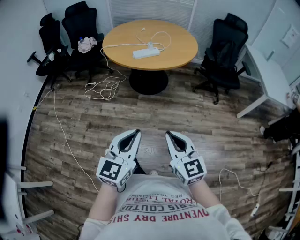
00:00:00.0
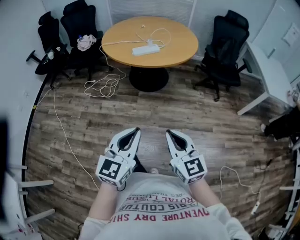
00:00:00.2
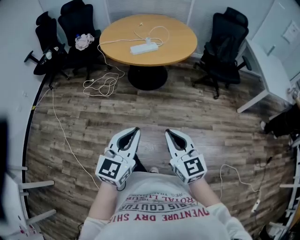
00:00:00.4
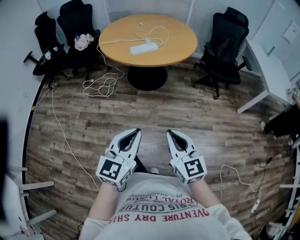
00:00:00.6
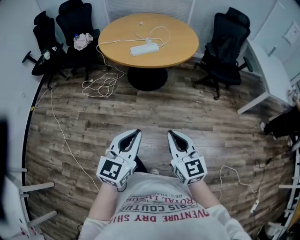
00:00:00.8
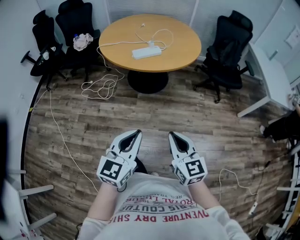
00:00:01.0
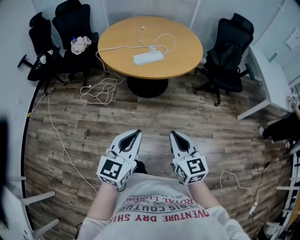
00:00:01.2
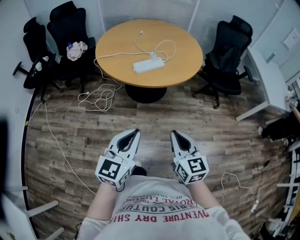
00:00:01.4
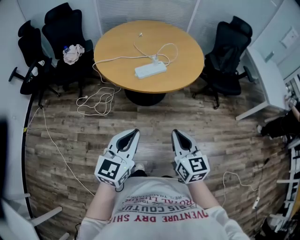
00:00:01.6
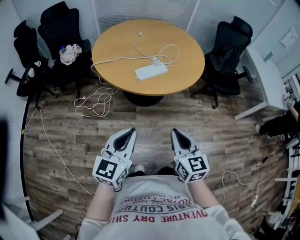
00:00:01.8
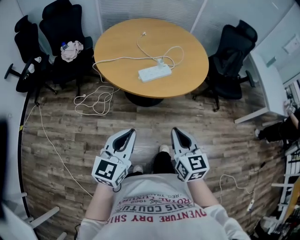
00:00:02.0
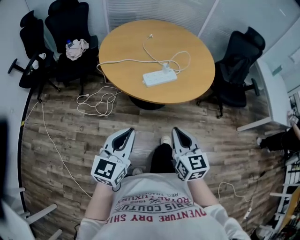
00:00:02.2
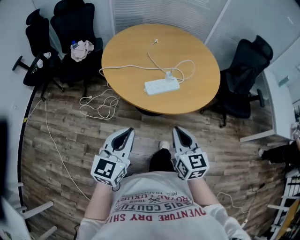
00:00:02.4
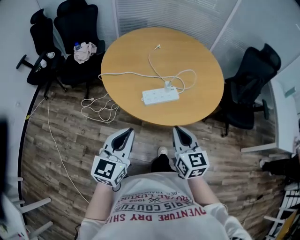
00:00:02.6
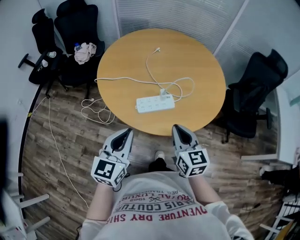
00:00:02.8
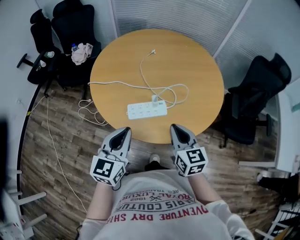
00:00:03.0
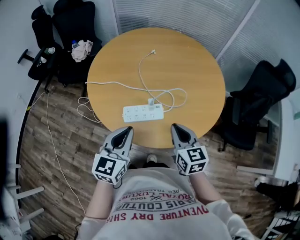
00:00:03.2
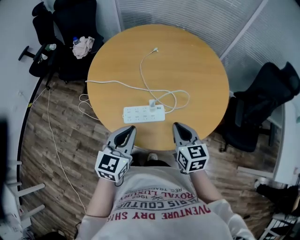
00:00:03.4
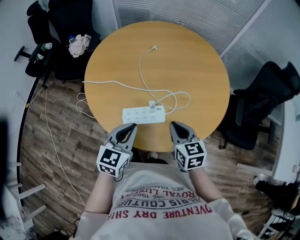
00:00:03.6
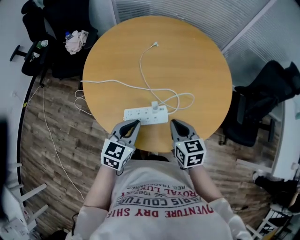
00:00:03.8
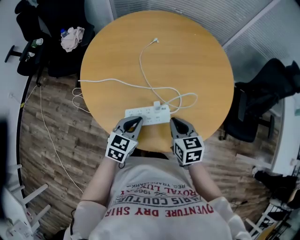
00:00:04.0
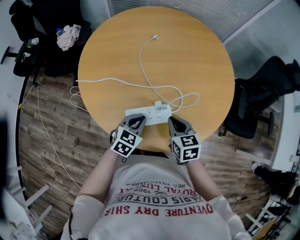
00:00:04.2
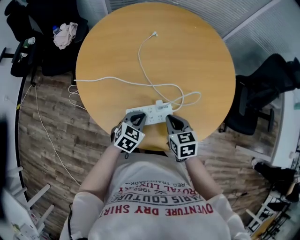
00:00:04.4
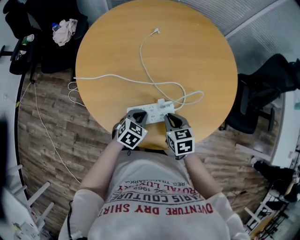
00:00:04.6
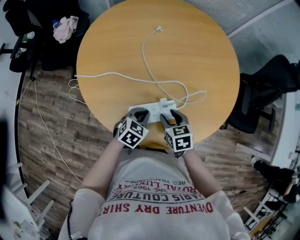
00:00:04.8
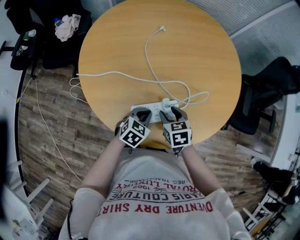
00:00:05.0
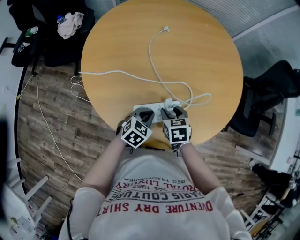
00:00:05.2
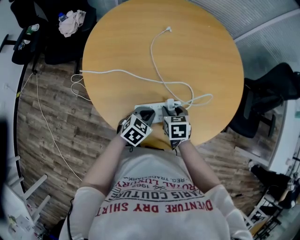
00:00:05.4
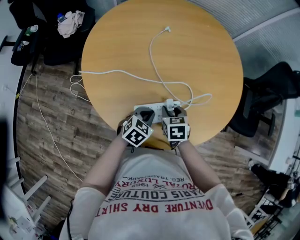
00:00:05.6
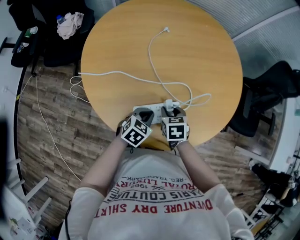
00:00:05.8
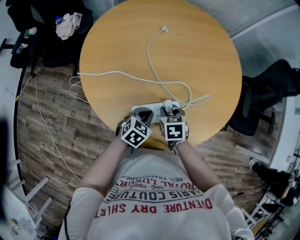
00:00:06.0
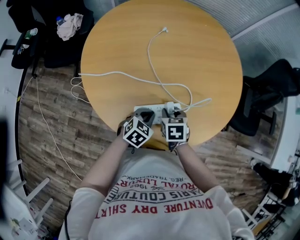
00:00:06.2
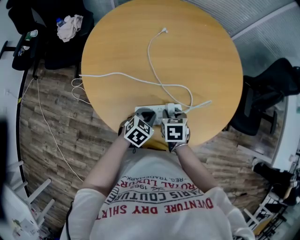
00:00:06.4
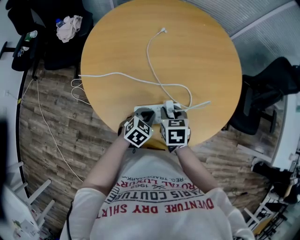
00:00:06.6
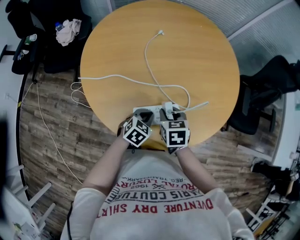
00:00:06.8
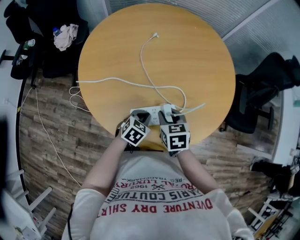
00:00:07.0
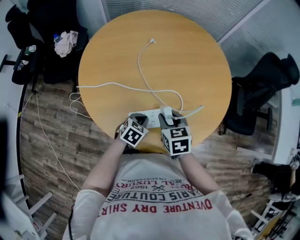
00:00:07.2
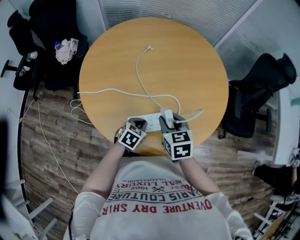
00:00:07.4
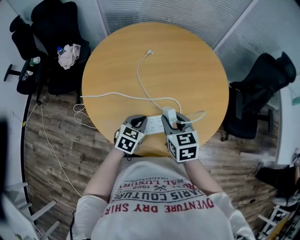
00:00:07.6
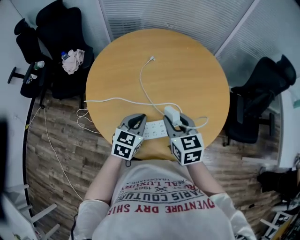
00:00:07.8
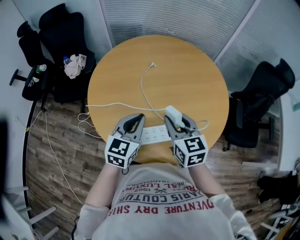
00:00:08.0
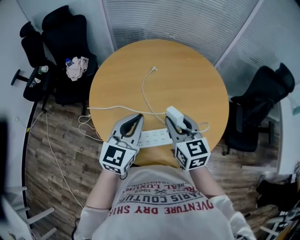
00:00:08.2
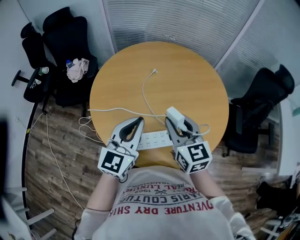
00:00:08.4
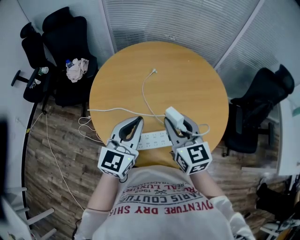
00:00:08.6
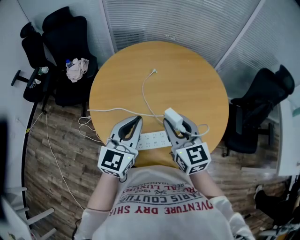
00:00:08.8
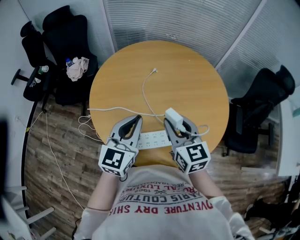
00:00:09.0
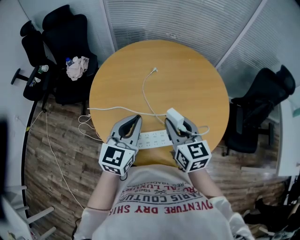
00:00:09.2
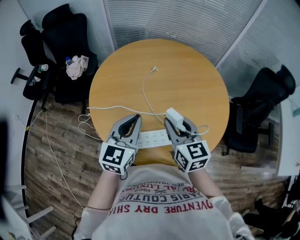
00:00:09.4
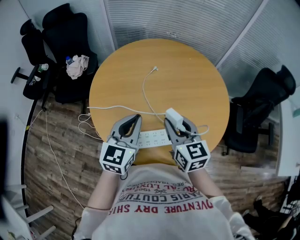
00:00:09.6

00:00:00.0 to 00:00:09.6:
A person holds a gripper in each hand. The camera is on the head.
00:00:00.0 to 00:00:01.6: The right gripper is displaced forward by about 25 cm; the left gripper is displaced forward and to the left by about 30 cm.
00:00:01.6 to 00:00:03.2: The grippers both shift forward by some 40 cm. The left gripper changes its angle by roughly 20 degrees. Meanwhile the right gripper swivels some 20 degrees.
00:00:03.2 to 00:00:04.8: The left gripper shifts some 25 cm downward and forward, and points its fingers about 30 degrees further downward; the right gripper travels downward, to the left and forward by some 20 cm, swivels roughly 30 degrees, and opens up.
00:00:04.8 to 00:00:06.4: The grippers move only a little.
00:00:06.4 to 00:00:08.0: The two grippers go some 25 cm upward. The right gripper tips its fingers upward by approximately 40 degrees, while the left gripper angles its fingers upward, by about 30 degrees.

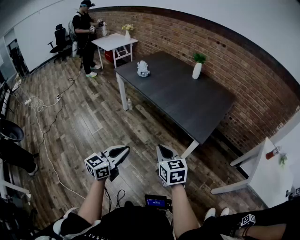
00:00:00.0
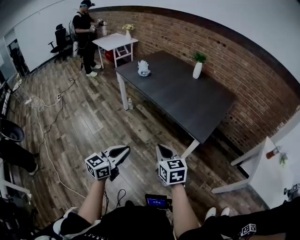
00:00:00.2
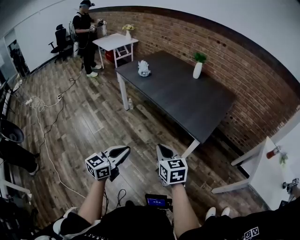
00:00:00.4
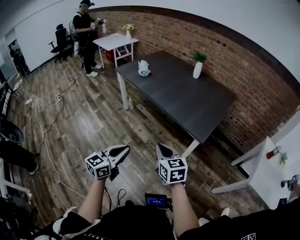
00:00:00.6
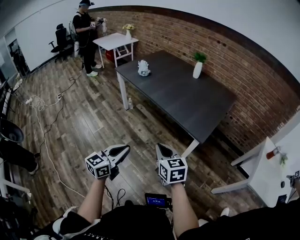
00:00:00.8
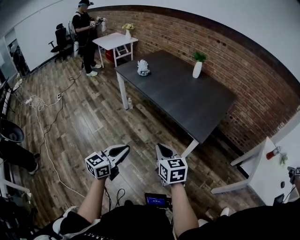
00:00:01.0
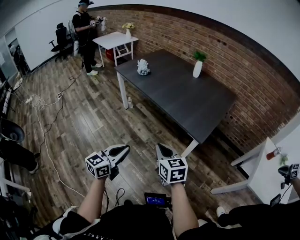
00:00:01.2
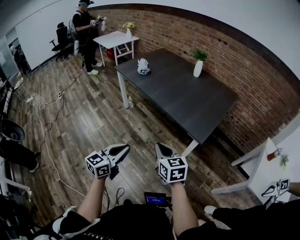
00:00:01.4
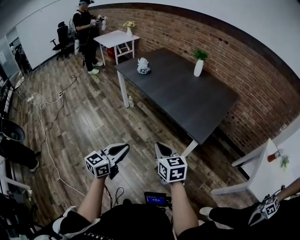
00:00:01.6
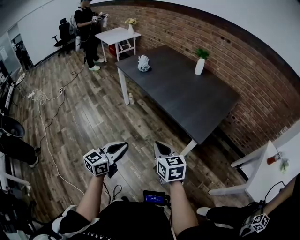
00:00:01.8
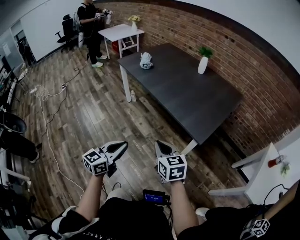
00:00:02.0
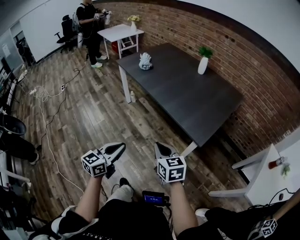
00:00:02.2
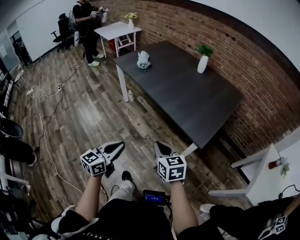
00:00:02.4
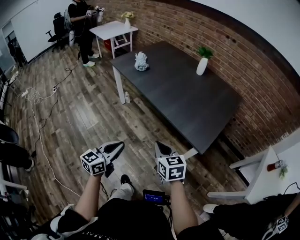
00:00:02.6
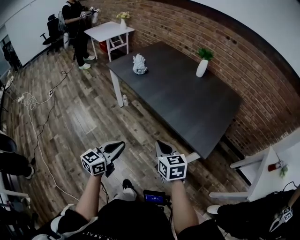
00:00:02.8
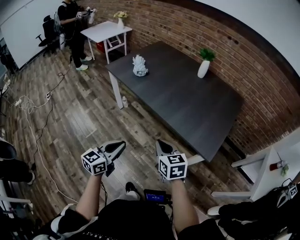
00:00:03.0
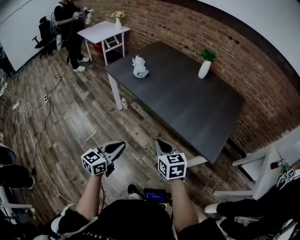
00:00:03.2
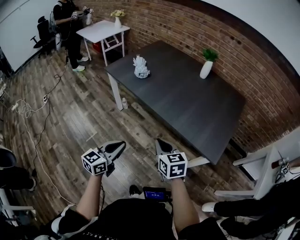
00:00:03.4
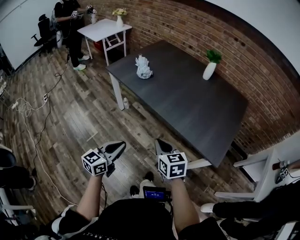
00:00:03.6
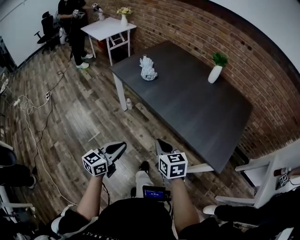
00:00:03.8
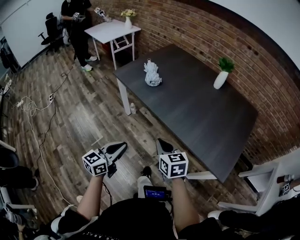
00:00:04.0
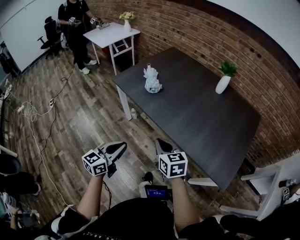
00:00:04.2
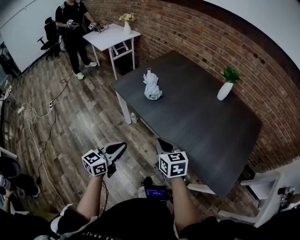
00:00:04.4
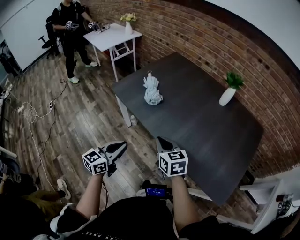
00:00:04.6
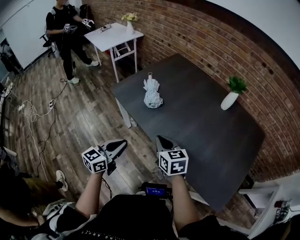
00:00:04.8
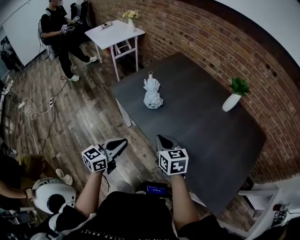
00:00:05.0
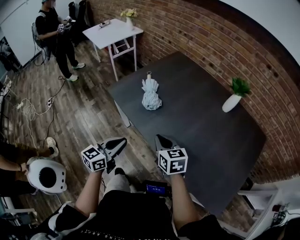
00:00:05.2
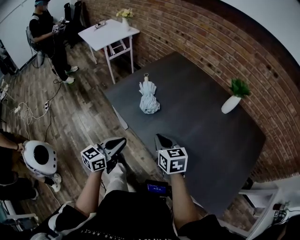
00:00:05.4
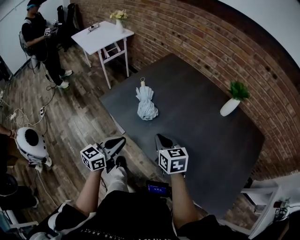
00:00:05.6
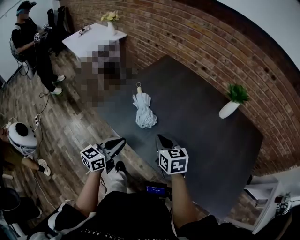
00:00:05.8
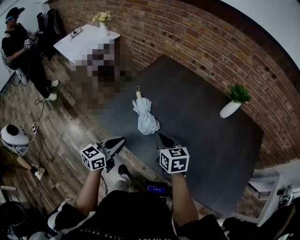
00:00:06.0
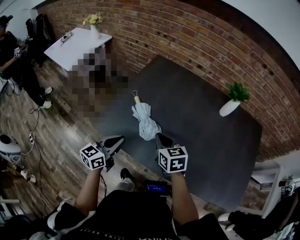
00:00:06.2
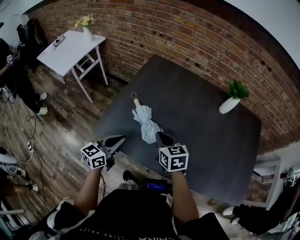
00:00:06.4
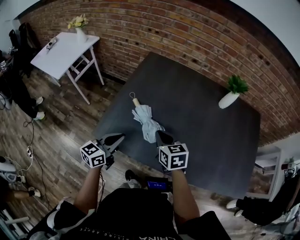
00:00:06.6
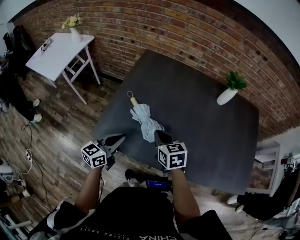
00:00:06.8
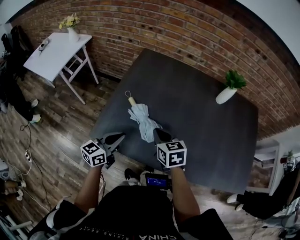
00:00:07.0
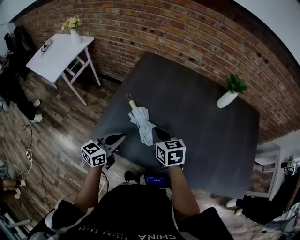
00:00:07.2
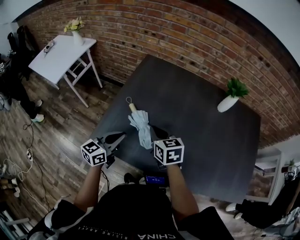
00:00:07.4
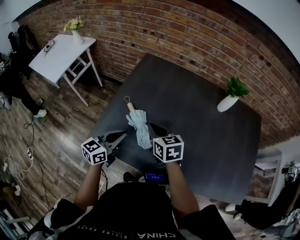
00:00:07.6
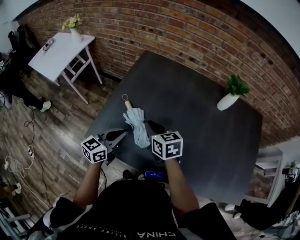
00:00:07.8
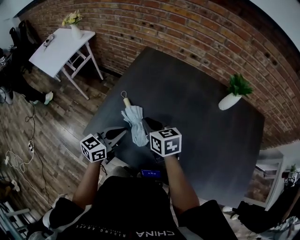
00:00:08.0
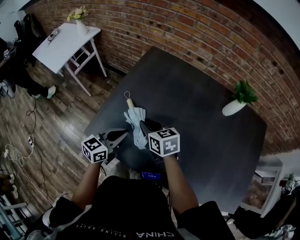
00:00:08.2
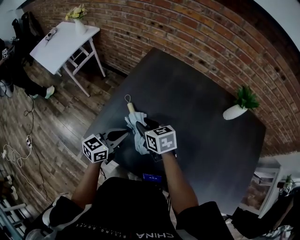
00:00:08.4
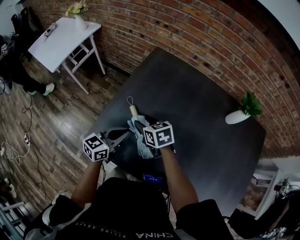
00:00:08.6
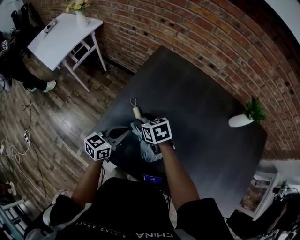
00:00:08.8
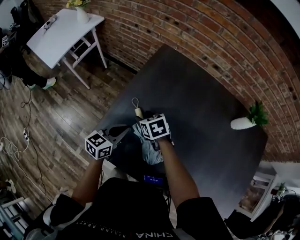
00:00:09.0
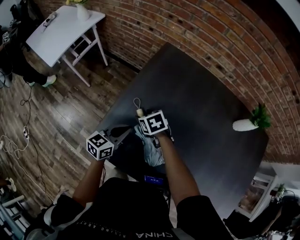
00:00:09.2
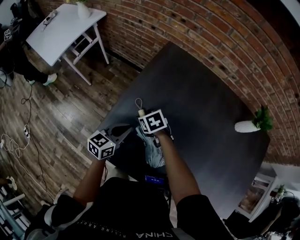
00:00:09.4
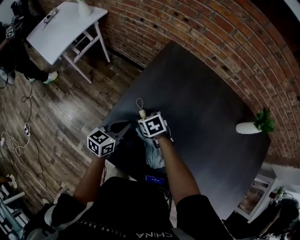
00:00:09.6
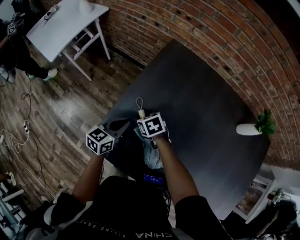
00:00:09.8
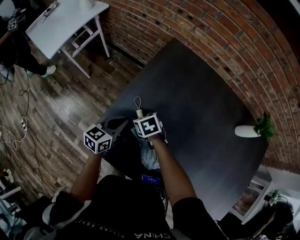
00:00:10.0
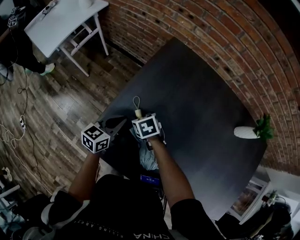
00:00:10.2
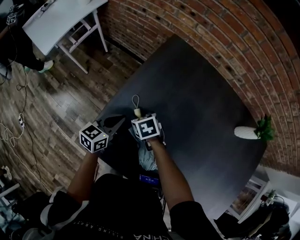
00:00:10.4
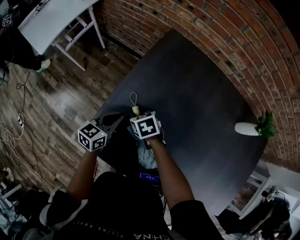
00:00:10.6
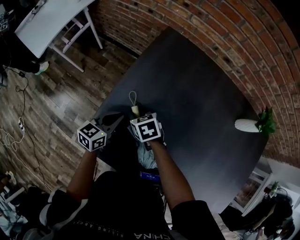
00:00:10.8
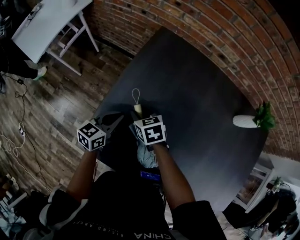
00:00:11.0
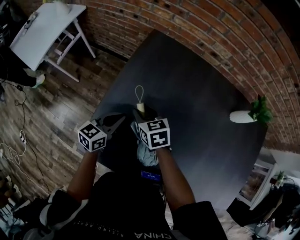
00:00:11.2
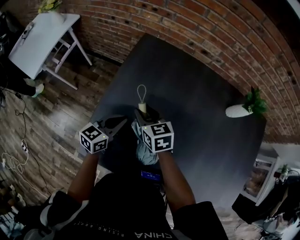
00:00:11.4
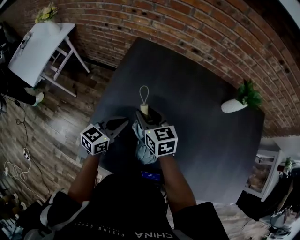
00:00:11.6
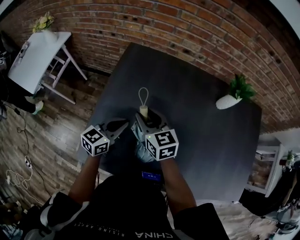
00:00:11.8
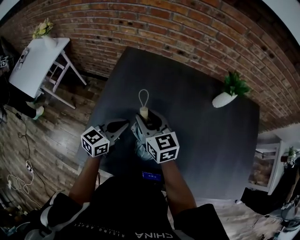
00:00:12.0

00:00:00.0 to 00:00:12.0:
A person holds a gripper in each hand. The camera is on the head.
00:00:00.0 to 00:00:01.6: The grippers stay close to where they were, moving slightly.
00:00:01.6 to 00:00:03.0: The left gripper moves forward and to the left, approximately 25 cm. The right gripper travels forward by some 20 cm.
00:00:03.0 to 00:00:04.4: Both grippers move forward and to the left, roughly 30 cm.
00:00:04.4 to 00:00:06.0: The grippers both shift forward by about 30 cm.
00:00:06.0 to 00:00:07.6: The right gripper goes some 15 cm forward and to the left. Meanwhile the left gripper moves forward, some 15 cm.
00:00:07.6 to 00:00:09.0: The right gripper shifts some 20 cm forward, downward and to the left, swivels some 30 degrees, and opens up, while the left gripper moves forward and downward, about 15 cm.
00:00:09.0 to 00:00:10.4: The left gripper moves forward, approximately 5 cm. The right gripper is displaced downward by some 5 cm.
00:00:10.4 to 00:00:12.0: The left gripper ends up roughly 20 cm from where it was, and swivels about 20 degrees, while the right gripper travels upward by approximately 20 cm, and tips its fingers upward by about 40 degrees.

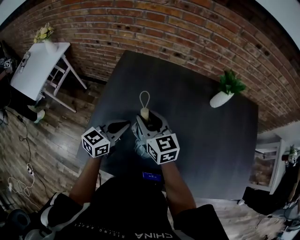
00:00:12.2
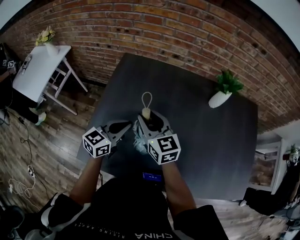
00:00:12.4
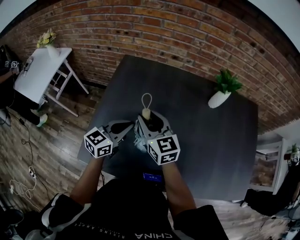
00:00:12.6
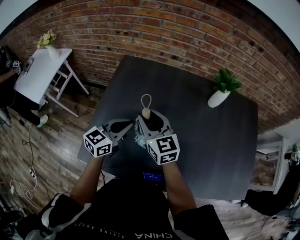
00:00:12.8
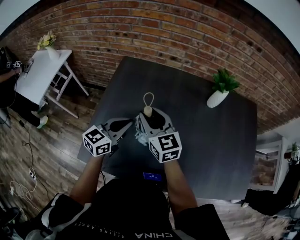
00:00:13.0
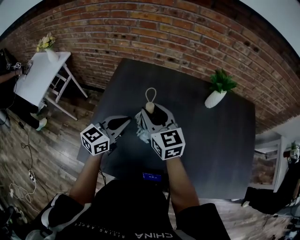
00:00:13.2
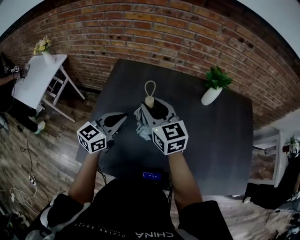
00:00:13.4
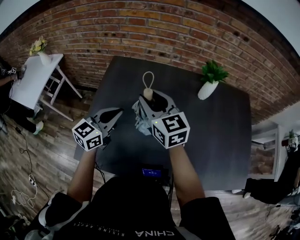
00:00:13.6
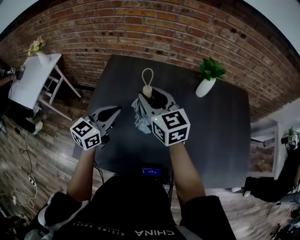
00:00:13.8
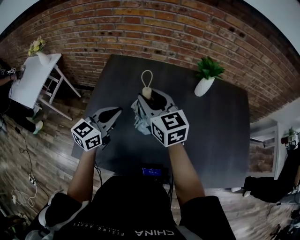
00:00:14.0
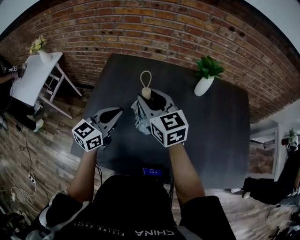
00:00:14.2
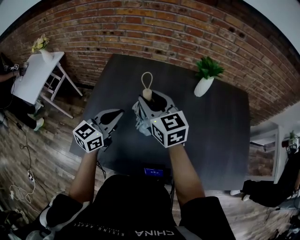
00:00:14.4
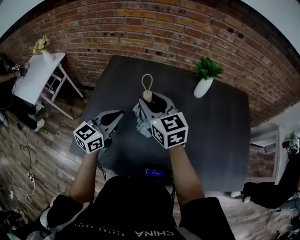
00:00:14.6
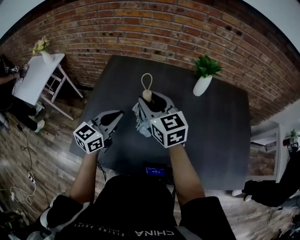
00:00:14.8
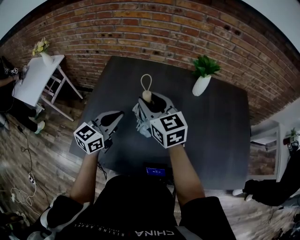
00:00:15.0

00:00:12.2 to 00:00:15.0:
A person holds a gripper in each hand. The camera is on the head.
00:00:12.2 to 00:00:13.6: The left gripper goes roughly 10 cm upward. Meanwhile the right gripper is displaced upward and to the right by some 10 cm.
00:00:13.6 to 00:00:15.0: The grippers both shift to the right by some 5 cm.
